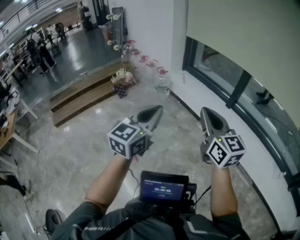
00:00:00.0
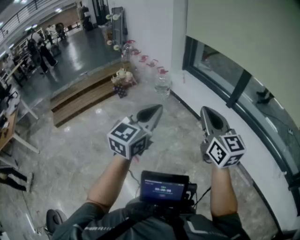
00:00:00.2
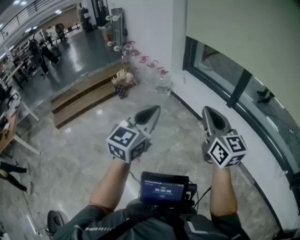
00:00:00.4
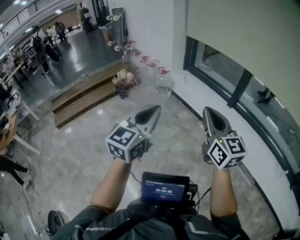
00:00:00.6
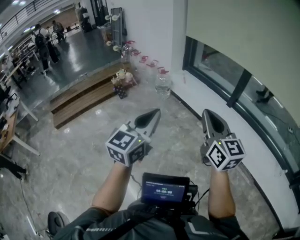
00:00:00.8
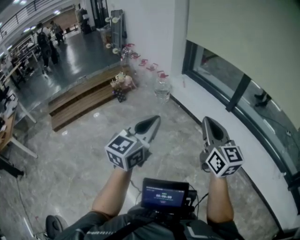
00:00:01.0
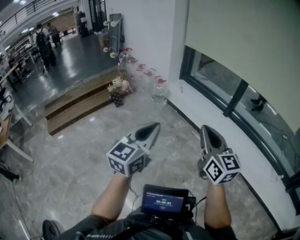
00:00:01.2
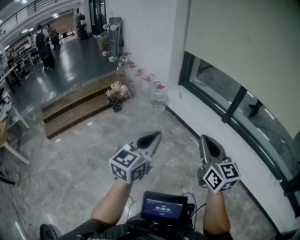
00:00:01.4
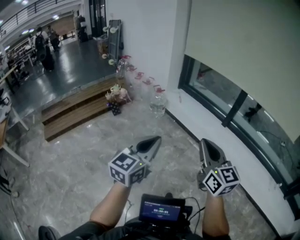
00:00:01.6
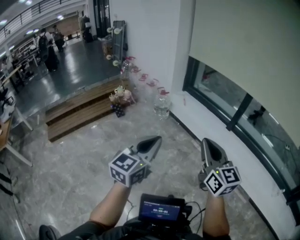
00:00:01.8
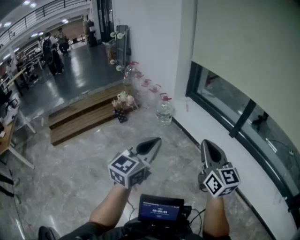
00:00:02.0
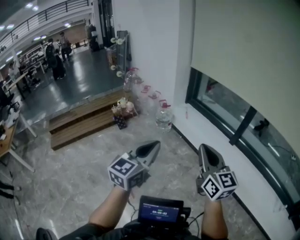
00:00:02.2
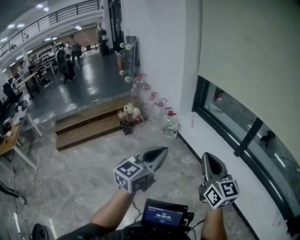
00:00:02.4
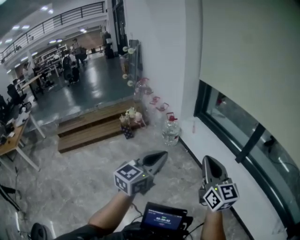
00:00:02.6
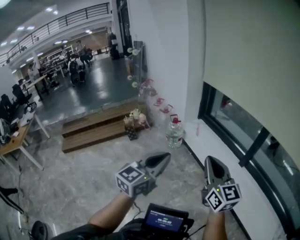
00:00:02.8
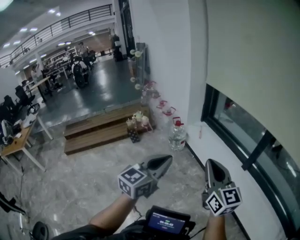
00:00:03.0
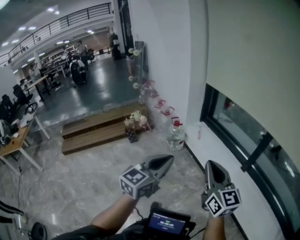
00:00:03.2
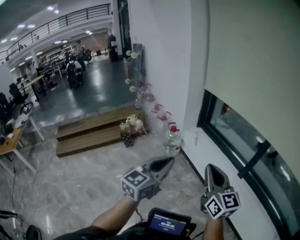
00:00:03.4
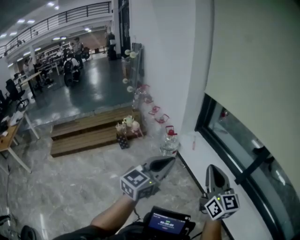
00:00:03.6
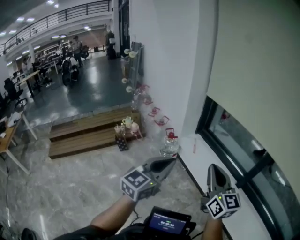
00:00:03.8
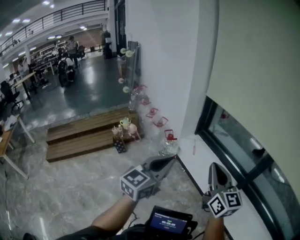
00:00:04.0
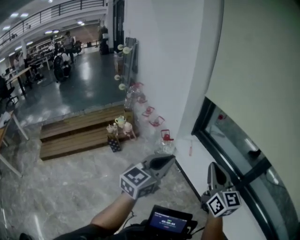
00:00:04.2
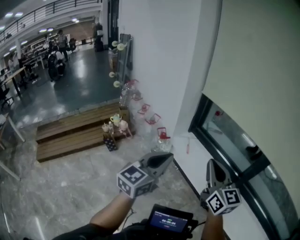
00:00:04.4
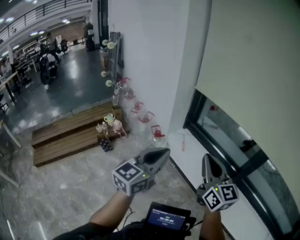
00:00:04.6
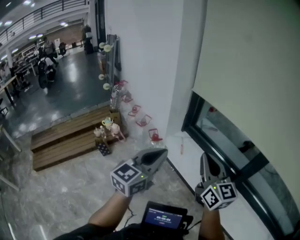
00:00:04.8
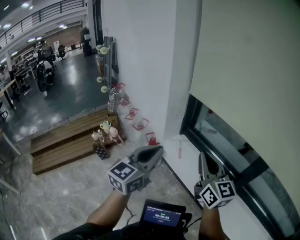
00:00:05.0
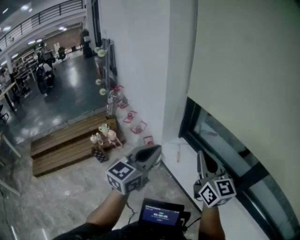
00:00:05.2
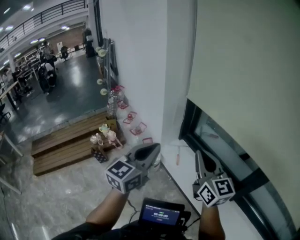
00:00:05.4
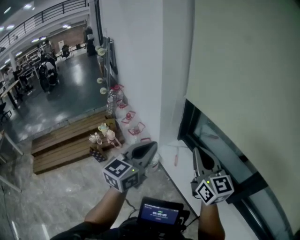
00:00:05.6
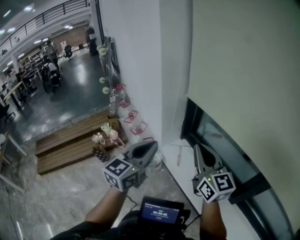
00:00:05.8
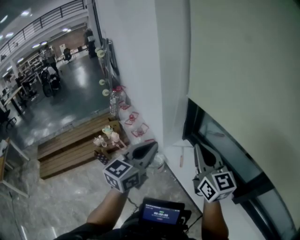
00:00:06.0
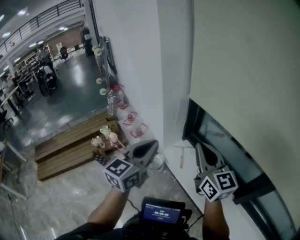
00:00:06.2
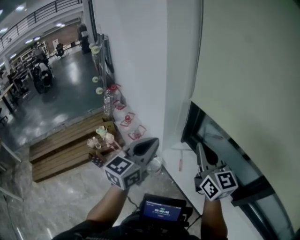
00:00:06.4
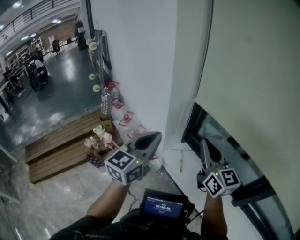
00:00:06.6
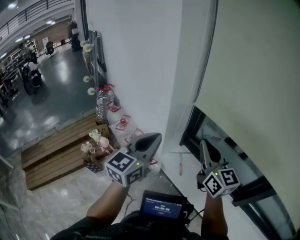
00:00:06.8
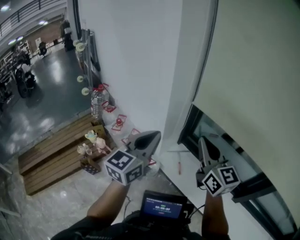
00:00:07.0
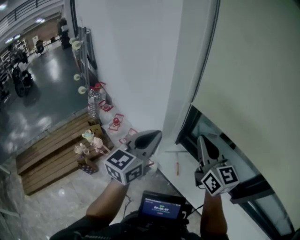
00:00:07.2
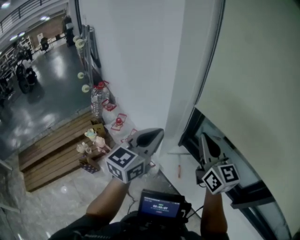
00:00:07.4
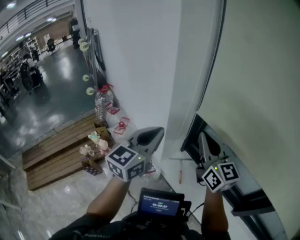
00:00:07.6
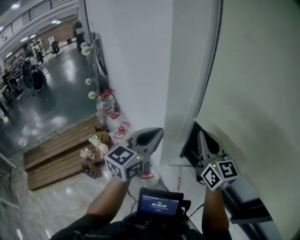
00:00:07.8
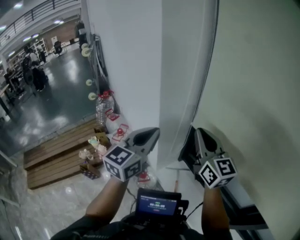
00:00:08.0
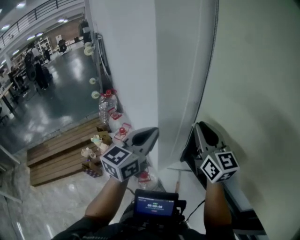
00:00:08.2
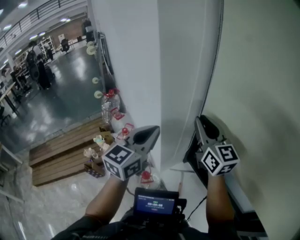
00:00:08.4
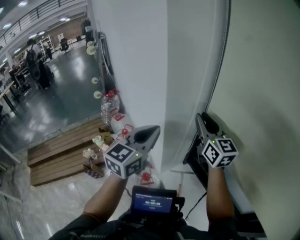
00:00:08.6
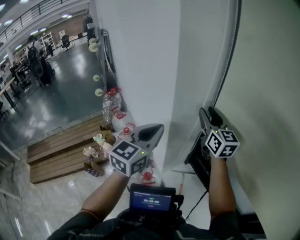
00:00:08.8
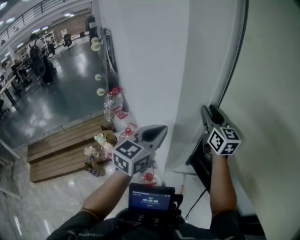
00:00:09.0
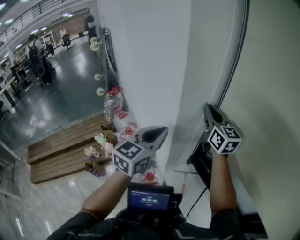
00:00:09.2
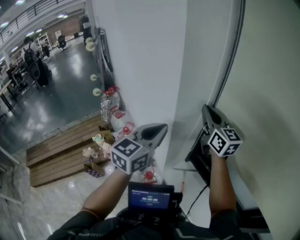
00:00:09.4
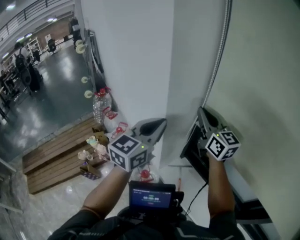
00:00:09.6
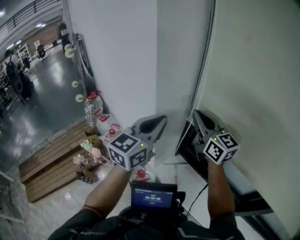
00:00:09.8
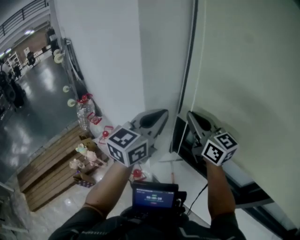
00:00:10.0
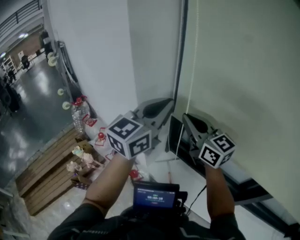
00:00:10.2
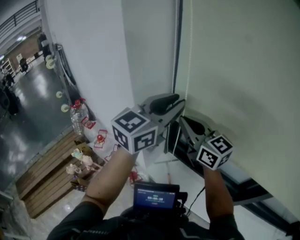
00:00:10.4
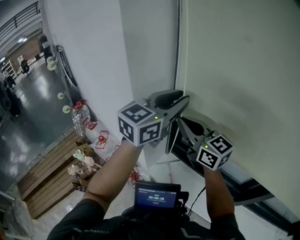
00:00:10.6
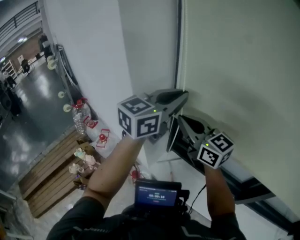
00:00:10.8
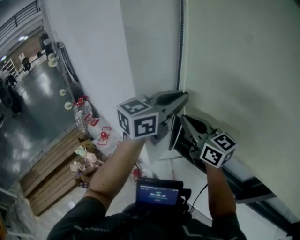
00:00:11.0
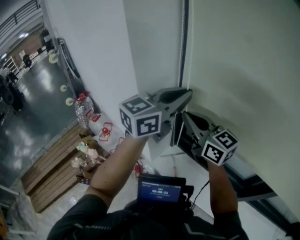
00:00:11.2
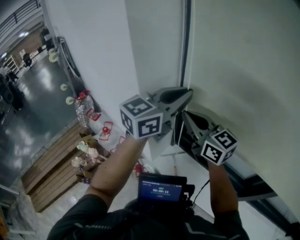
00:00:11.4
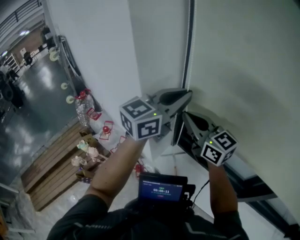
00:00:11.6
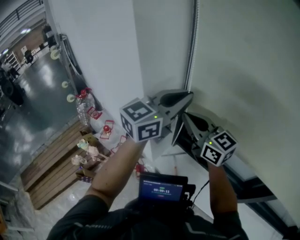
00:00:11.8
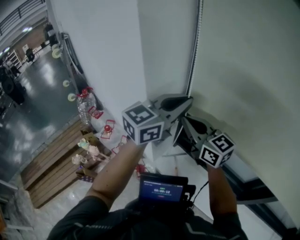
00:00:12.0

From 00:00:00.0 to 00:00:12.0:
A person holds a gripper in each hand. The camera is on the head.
From 00:00:00.0 to 00:00:01.6: The left gripper is displaced to the left by about 5 cm; the right gripper shifts by about 5 cm.
From 00:00:01.6 to 00:00:03.0: The left gripper moves forward and to the right, some 25 cm. The right gripper shifts roughly 20 cm forward.
From 00:00:03.0 to 00:00:04.4: Both grippers move forward, about 25 cm.
From 00:00:04.4 to 00:00:06.0: Both grippers move forward, some 25 cm.
From 00:00:06.0 to 00:00:07.6: Both grippers travel together forward, roughly 25 cm.
From 00:00:07.6 to 00:00:09.0: The right gripper travels forward by about 25 cm, and opens its fingers, while the left gripper travels forward by roughly 10 cm.
From 00:00:09.0 to 00:00:10.4: The left gripper moves to the right and upward, some 20 cm, changes its angle by roughly 30 degrees, and opens its fingers. Meanwhile the right gripper moves backward, some 15 cm, and closes its fingers.
From 00:00:10.4 to 00:00:12.0: The right gripper moves about 5 cm. The left gripper closes up.

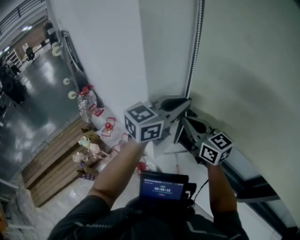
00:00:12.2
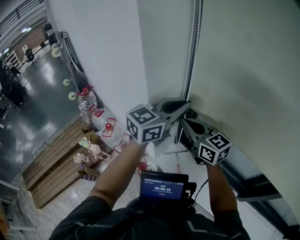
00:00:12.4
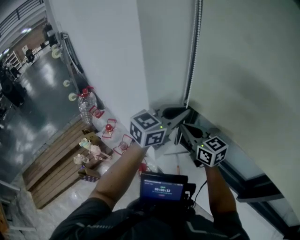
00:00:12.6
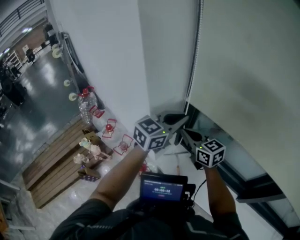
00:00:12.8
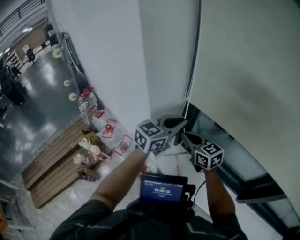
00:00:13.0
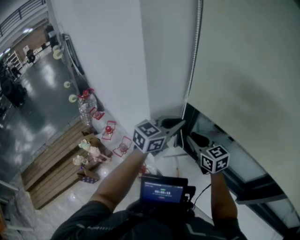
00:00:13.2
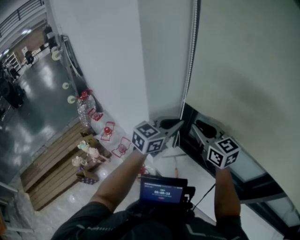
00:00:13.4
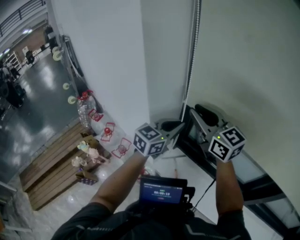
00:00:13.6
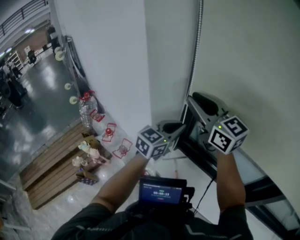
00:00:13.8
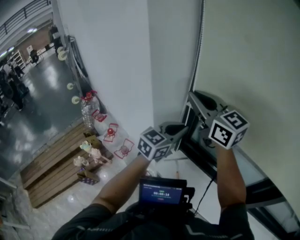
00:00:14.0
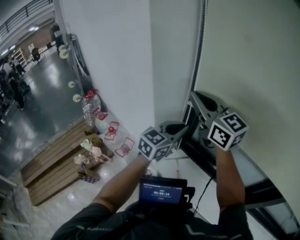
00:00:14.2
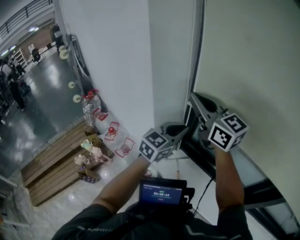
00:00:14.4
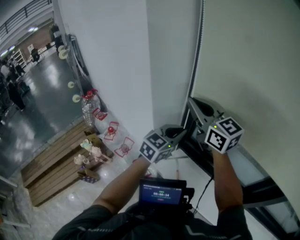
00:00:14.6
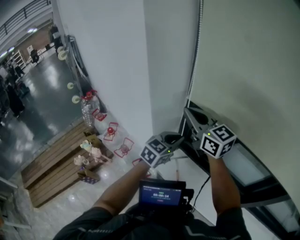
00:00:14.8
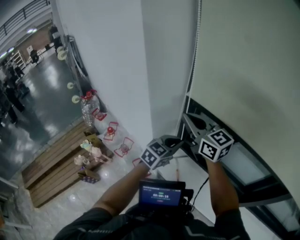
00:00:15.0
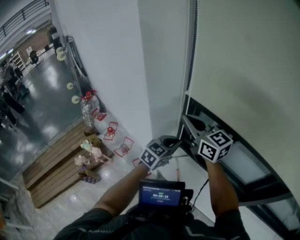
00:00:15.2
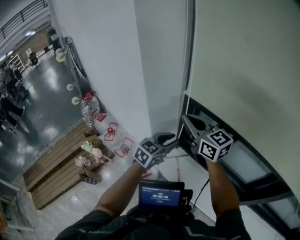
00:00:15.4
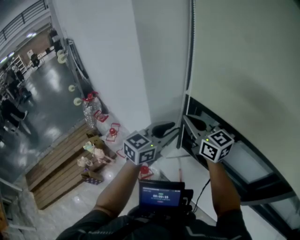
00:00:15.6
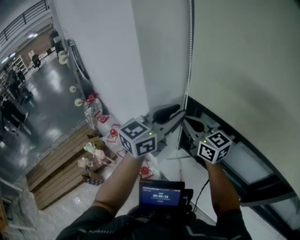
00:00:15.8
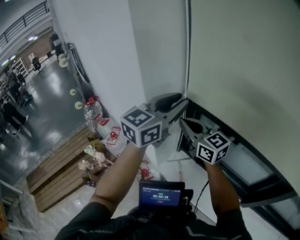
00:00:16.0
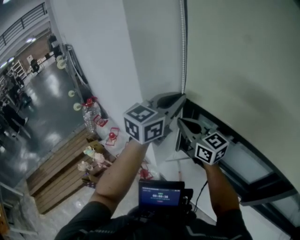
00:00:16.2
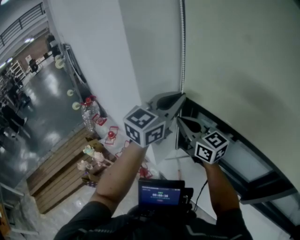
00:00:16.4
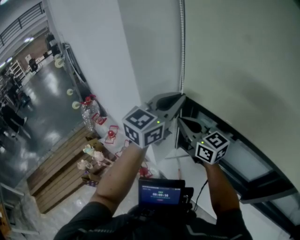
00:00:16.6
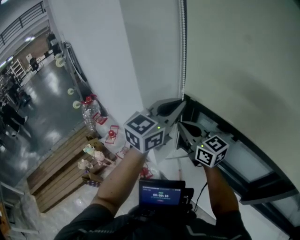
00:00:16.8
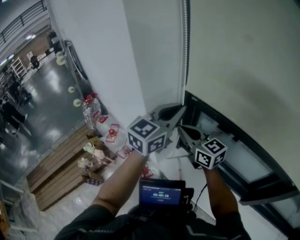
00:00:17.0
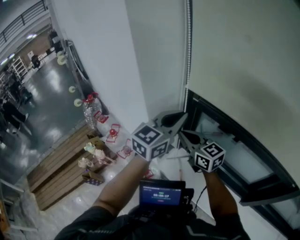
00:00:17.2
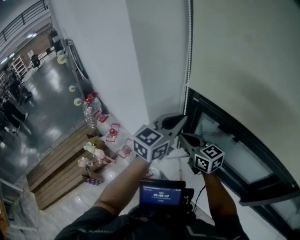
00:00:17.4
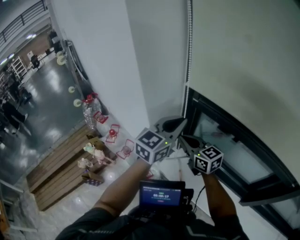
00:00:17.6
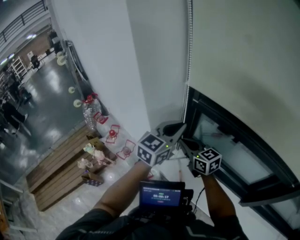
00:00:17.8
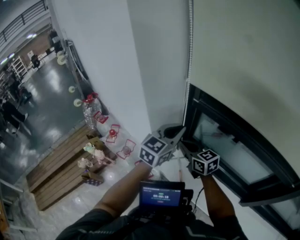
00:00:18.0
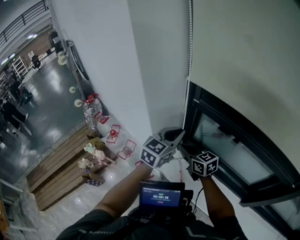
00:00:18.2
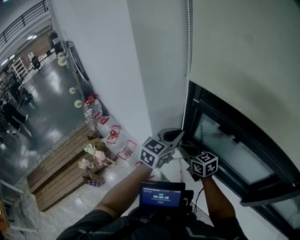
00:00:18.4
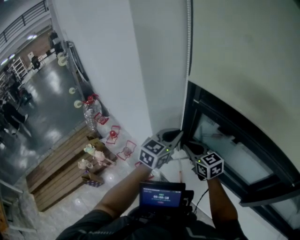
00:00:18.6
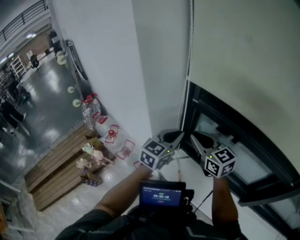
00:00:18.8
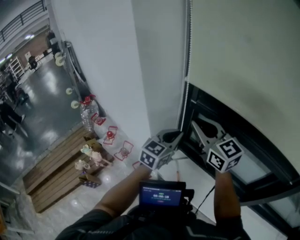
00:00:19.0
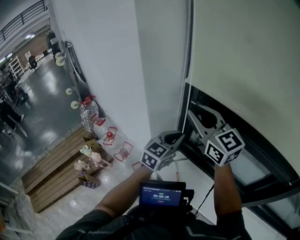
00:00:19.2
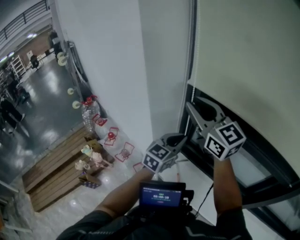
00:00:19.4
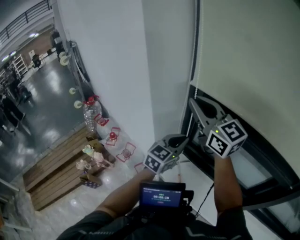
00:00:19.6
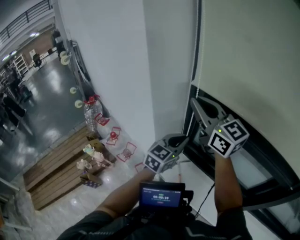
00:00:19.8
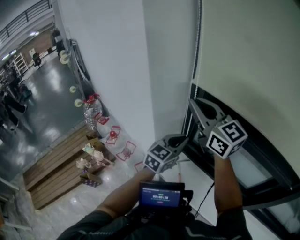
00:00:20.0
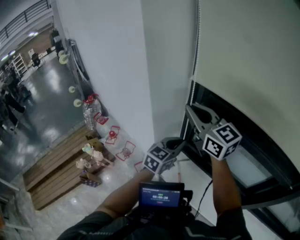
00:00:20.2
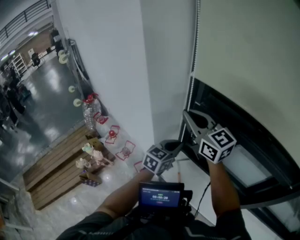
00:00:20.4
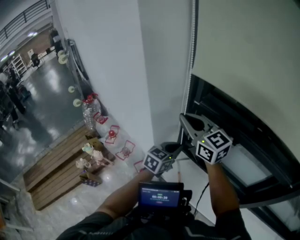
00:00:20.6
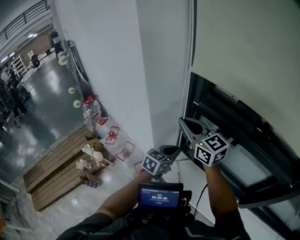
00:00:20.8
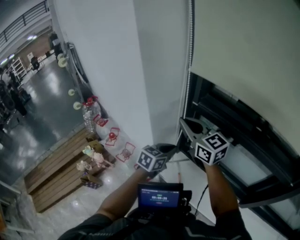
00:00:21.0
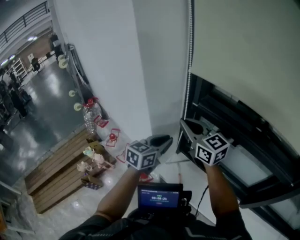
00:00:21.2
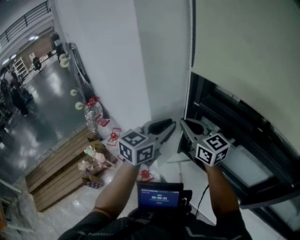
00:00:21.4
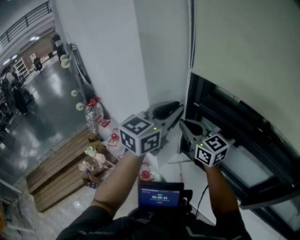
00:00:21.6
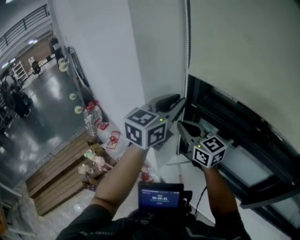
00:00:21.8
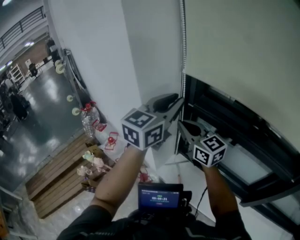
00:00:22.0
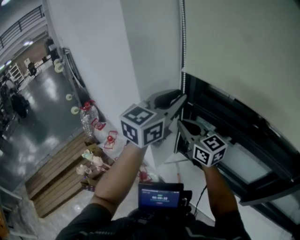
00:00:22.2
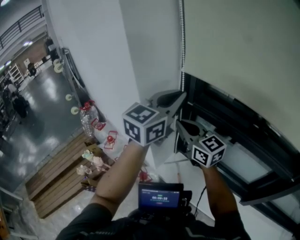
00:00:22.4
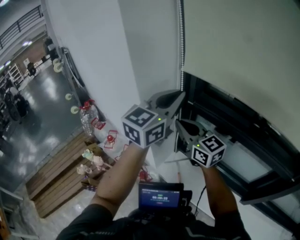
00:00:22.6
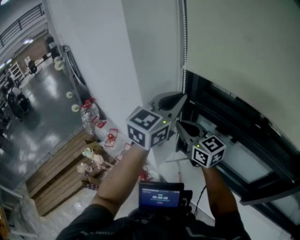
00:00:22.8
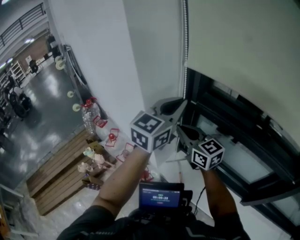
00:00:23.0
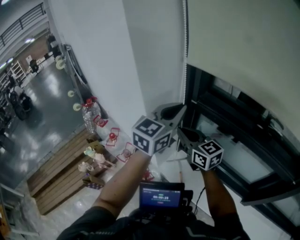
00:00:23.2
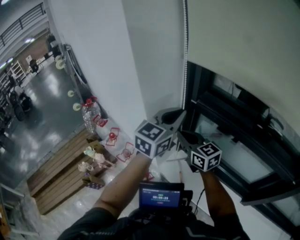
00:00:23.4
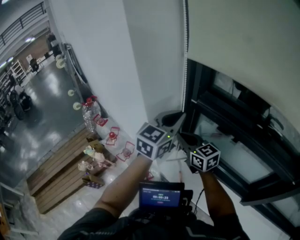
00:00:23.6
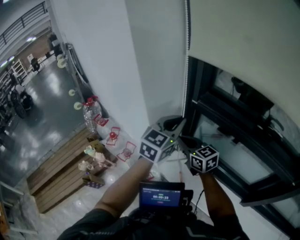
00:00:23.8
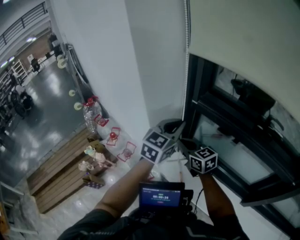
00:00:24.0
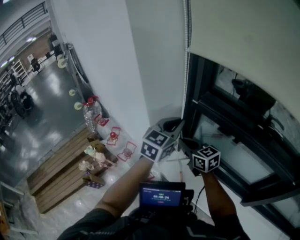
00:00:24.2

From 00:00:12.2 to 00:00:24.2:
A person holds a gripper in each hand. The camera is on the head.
From 00:00:12.2 to 00:00:13.8: The right gripper moves upward, roughly 15 cm, and opens up. Meanwhile the left gripper is displaced downward by approximately 10 cm.
From 00:00:13.8 to 00:00:15.2: Both grippers travel together downward, roughly 10 cm. The right gripper closes.
From 00:00:15.2 to 00:00:16.6: The left gripper shifts some 25 cm upward, turns by some 20 degrees, and opens, then closes once more.
From 00:00:16.6 to 00:00:18.2: The two grippers go roughly 15 cm downward. The right gripper changes its angle by about 20 degrees.
From 00:00:18.2 to 00:00:19.8: The right gripper is displaced upward by approximately 30 cm, turns by roughly 30 degrees, and opens and closes again.
From 00:00:19.8 to 00:00:21.2: The left gripper moves to the left, roughly 5 cm, and goes downward and returns, about 10 cm each way. Meanwhile the right gripper travels downward by approximately 10 cm.
From 00:00:21.2 to 00:00:22.6: The left gripper shifts roughly 20 cm upward, and turns by approximately 30 degrees.
From 00:00:22.6 to 00:00:24.2: Both grippers move downward, about 15 cm.
